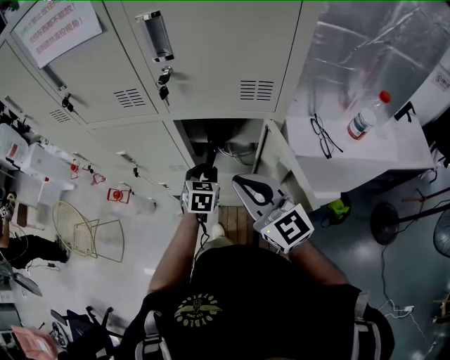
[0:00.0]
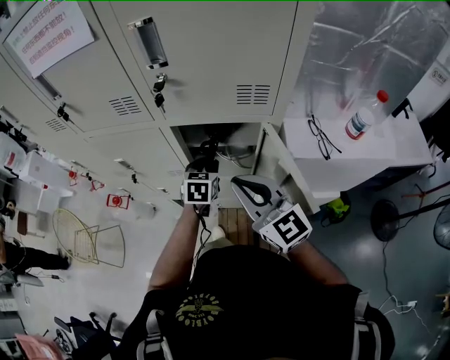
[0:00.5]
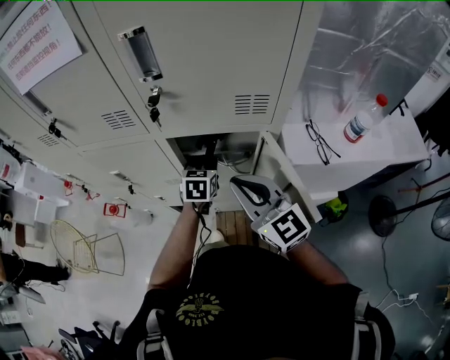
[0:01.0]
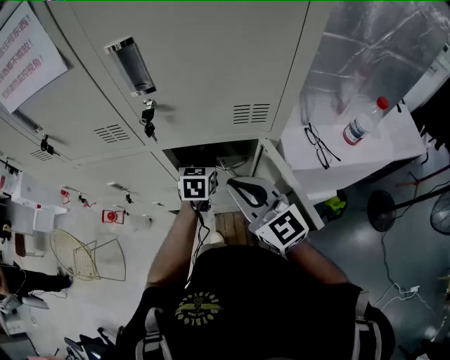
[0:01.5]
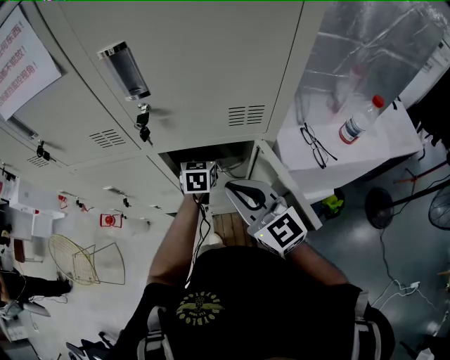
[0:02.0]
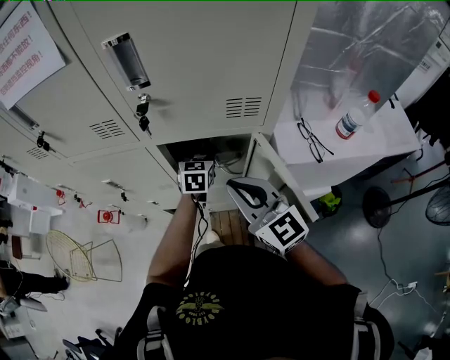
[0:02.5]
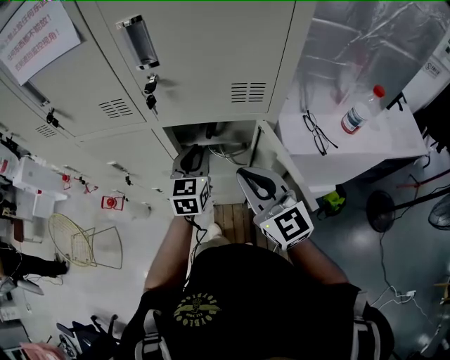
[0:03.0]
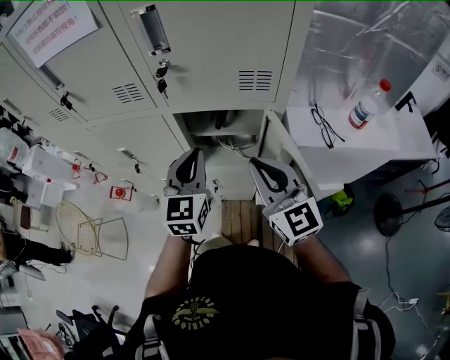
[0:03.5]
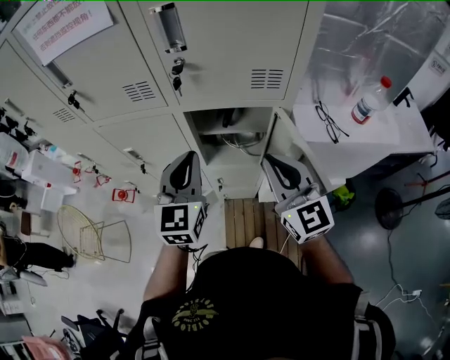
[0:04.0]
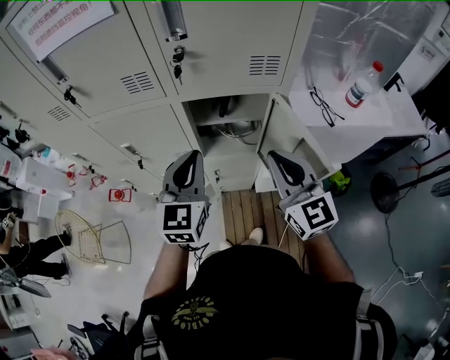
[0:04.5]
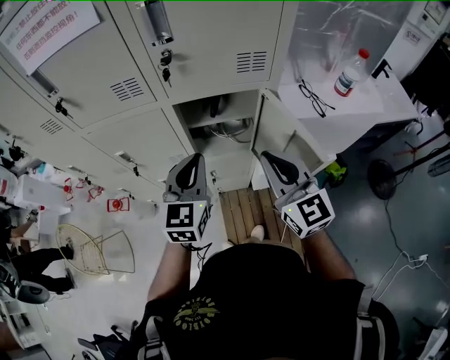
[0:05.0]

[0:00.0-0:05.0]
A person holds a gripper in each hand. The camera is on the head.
0:00.0 to 0:02.5: The left gripper heads forward and to the right, covering about 15 cm.
0:02.5 to 0:05.0: The right gripper shifts roughly 10 cm backward; the left gripper goes roughly 25 cm backward, upward and to the left, and closes up.

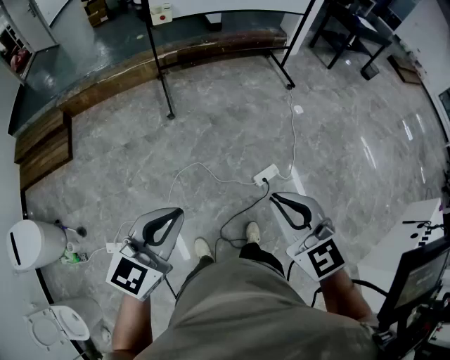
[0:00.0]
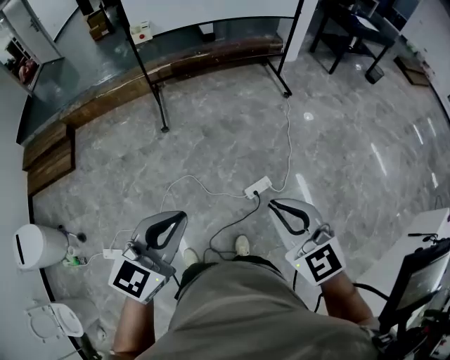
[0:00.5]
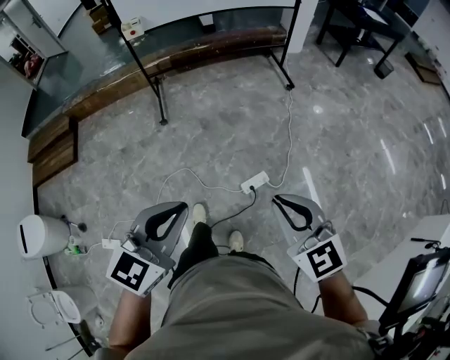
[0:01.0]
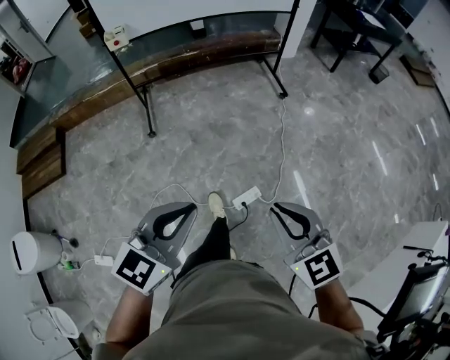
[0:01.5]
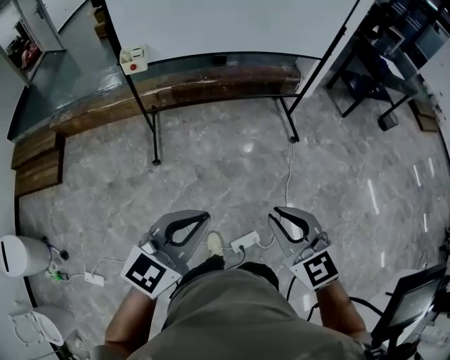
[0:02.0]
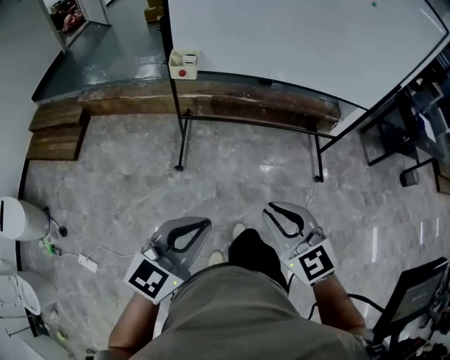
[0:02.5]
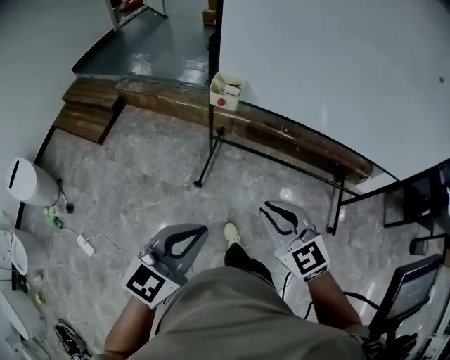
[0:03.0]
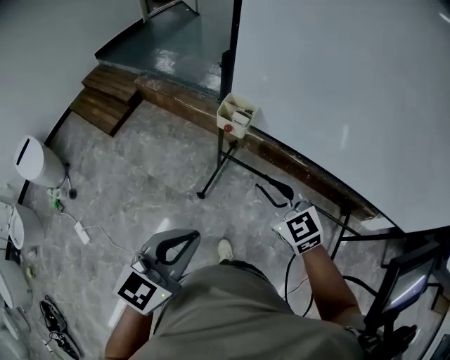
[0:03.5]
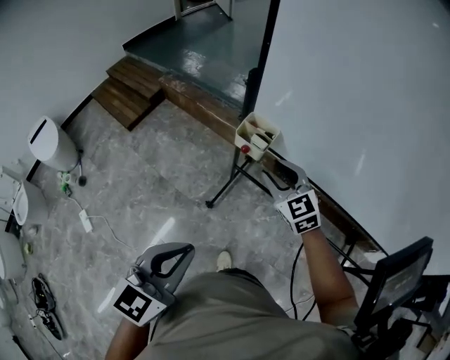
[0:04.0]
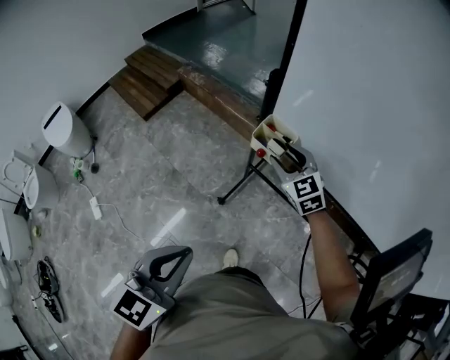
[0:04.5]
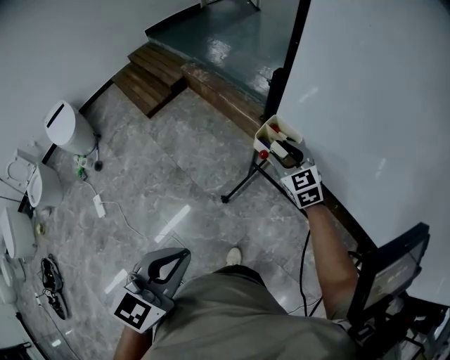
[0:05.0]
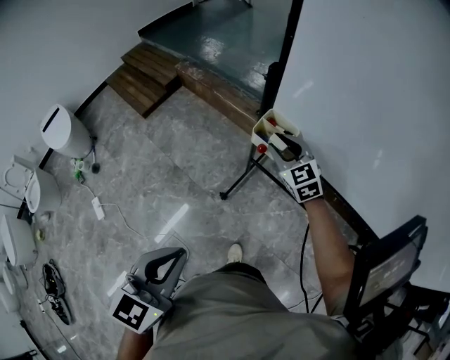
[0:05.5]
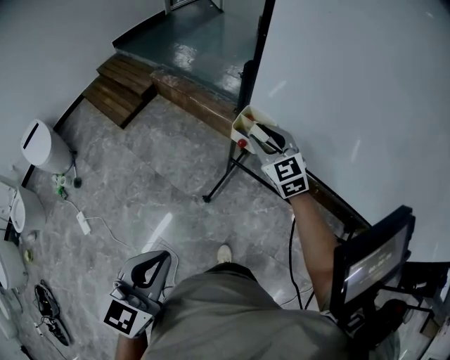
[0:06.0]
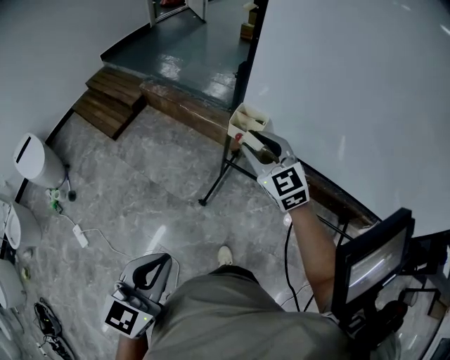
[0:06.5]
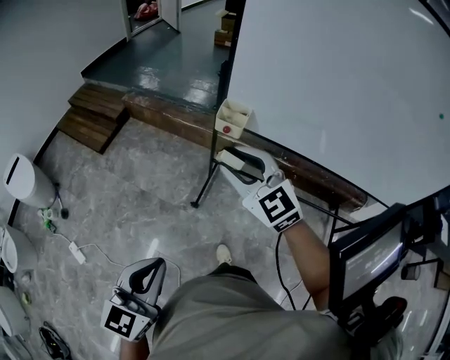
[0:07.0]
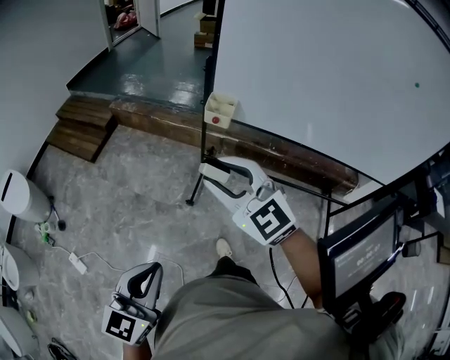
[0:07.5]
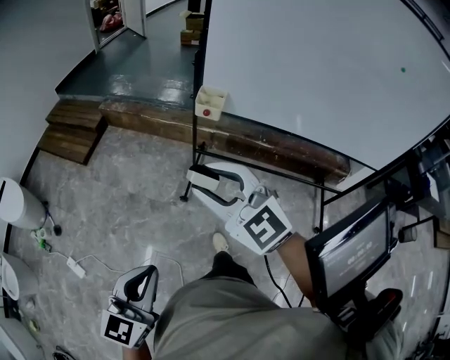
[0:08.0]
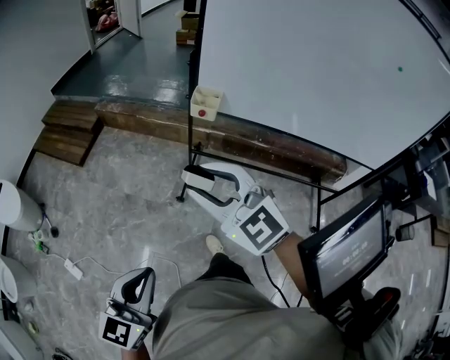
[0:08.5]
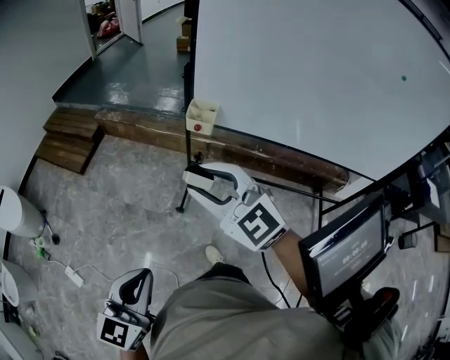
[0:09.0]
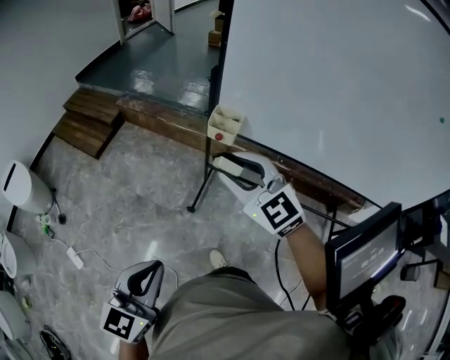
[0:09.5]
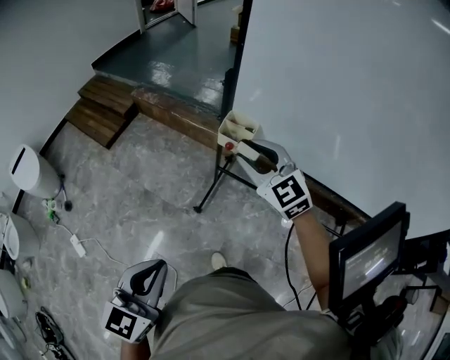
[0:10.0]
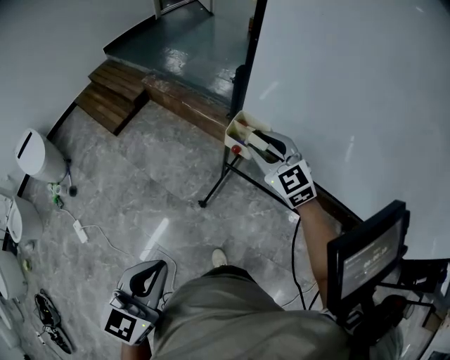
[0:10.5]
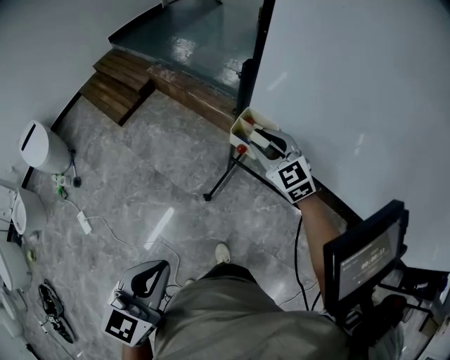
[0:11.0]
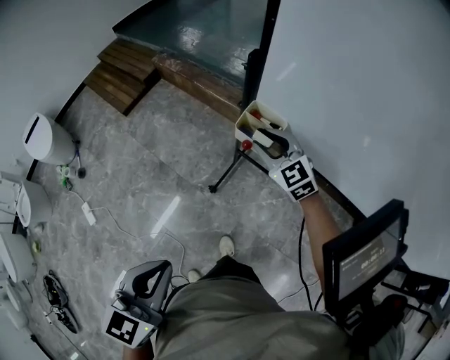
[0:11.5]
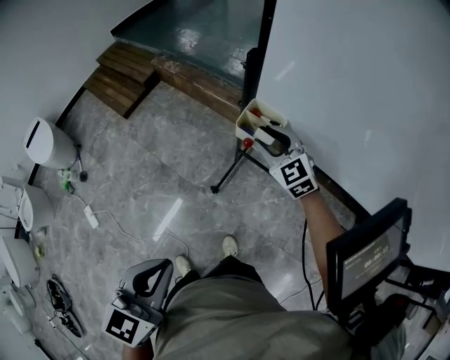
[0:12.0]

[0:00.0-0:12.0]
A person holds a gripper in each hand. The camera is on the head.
0:00.0 to 0:02.0: The two grippers travel together, forward and to the right, approximately 50 cm.
0:02.0 to 0:04.0: The right gripper shifts by approximately 70 cm, rotates about 40 degrees, and opens its fingers, while the left gripper shifts by some 40 cm, and changes its angle by about 50 degrees.
0:04.0 to 0:06.0: The right gripper moves forward, about 5 cm. Meanwhile the left gripper goes approximately 5 cm to the left.
0:06.0 to 0:08.0: The right gripper travels backward and to the left by about 40 cm. The left gripper moves backward and to the left, approximately 25 cm.
0:08.0 to 0:10.0: The left gripper travels forward and to the right by approximately 20 cm, while the right gripper is displaced forward and to the right by some 30 cm.
0:10.0 to 0:12.0: The left gripper moves forward, roughly 5 cm. The right gripper goes approximately 20 cm downward and forward.

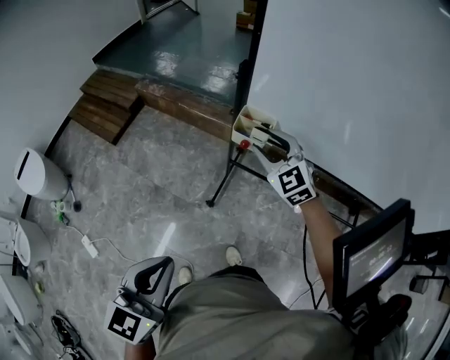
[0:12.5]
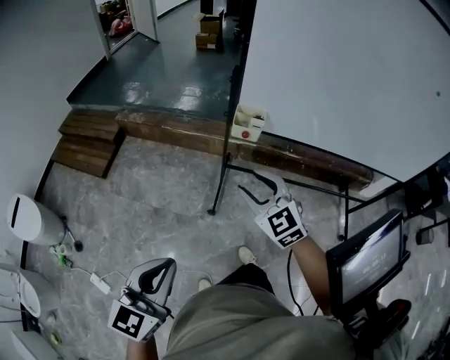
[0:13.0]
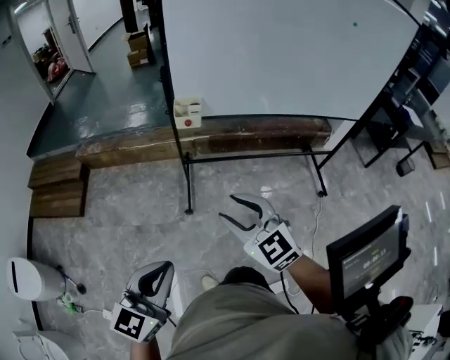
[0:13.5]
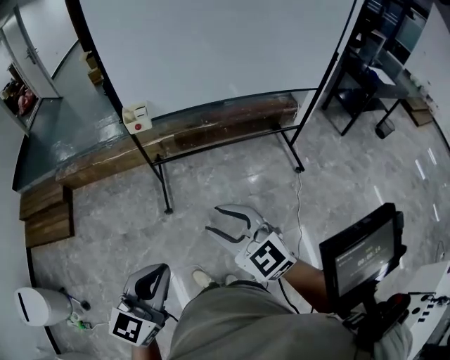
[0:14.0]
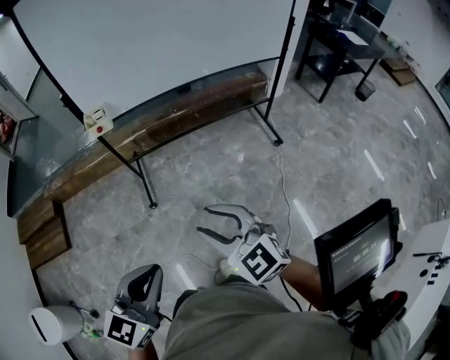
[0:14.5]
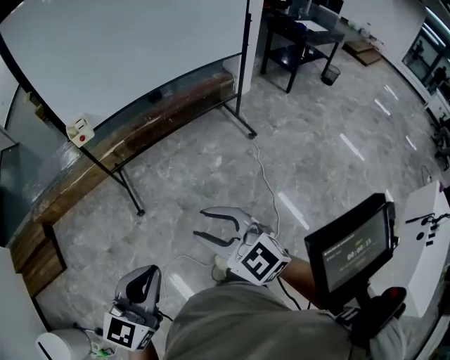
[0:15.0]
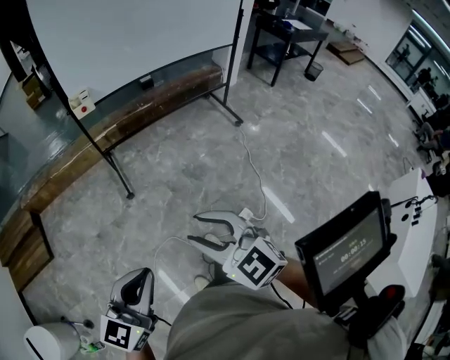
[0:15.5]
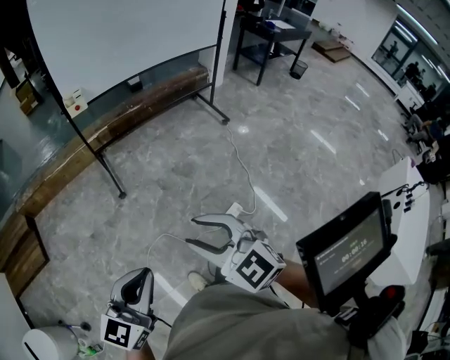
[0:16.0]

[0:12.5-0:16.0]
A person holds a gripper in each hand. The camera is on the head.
0:12.5 to 0:14.5: The right gripper ends up about 60 cm from where it was, and rotates about 40 degrees; the left gripper moves about 30 cm, and turns by approximately 50 degrees.
0:14.5 to 0:16.0: The grippers both shift backward by some 35 cm.

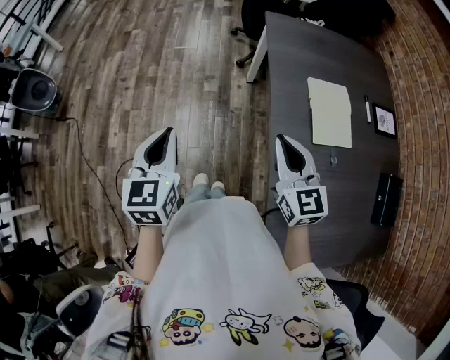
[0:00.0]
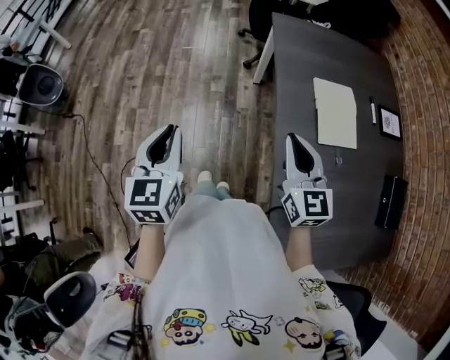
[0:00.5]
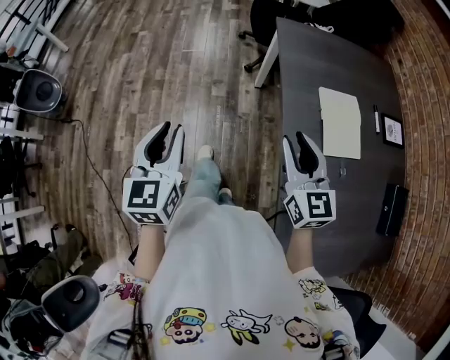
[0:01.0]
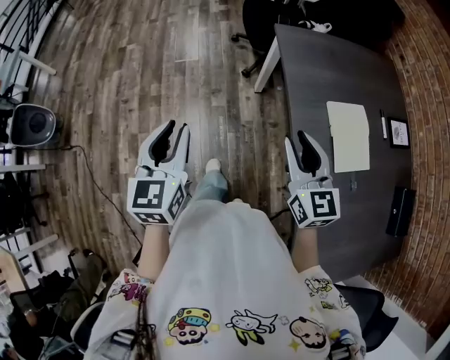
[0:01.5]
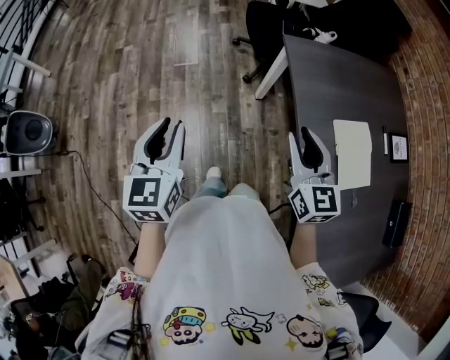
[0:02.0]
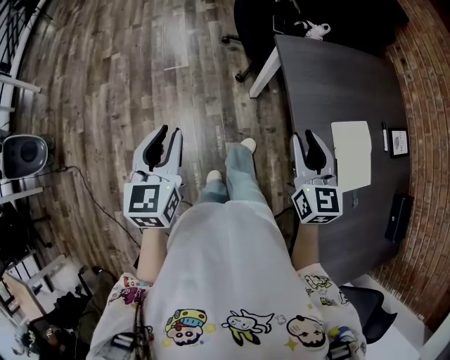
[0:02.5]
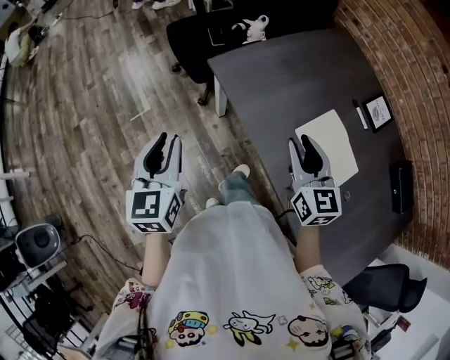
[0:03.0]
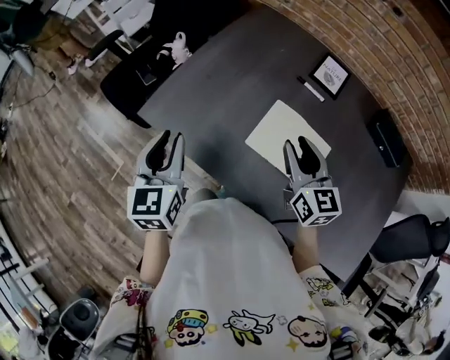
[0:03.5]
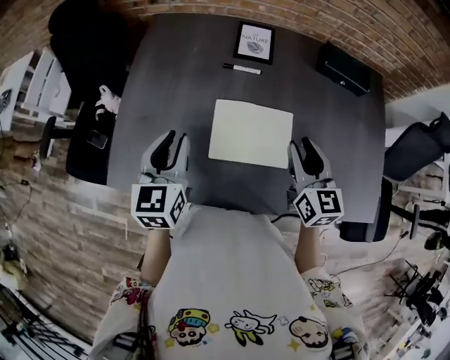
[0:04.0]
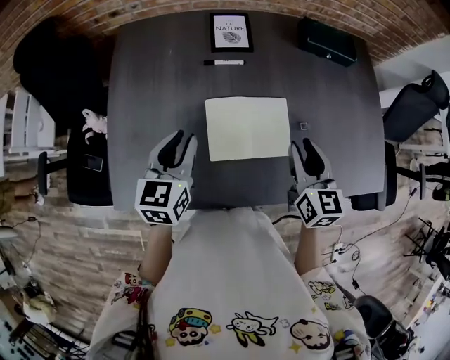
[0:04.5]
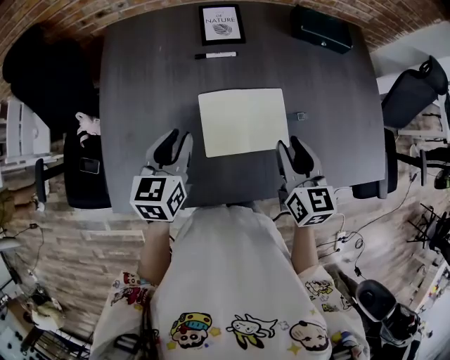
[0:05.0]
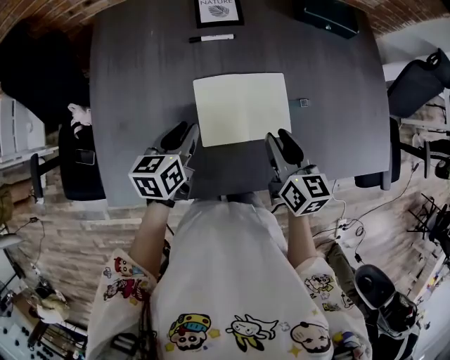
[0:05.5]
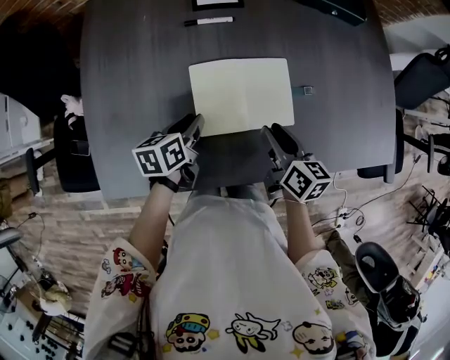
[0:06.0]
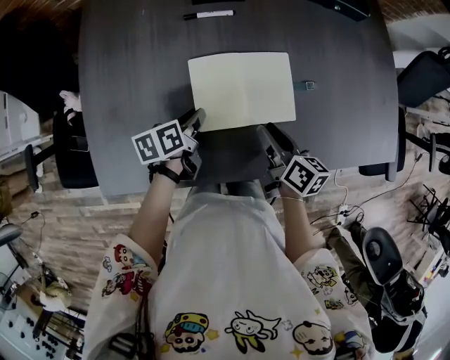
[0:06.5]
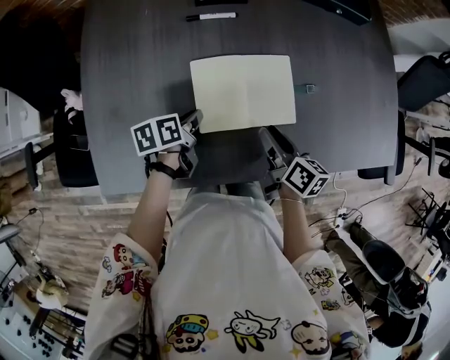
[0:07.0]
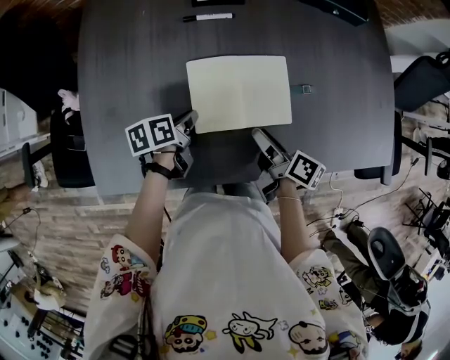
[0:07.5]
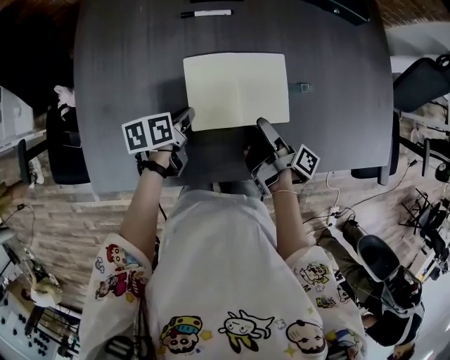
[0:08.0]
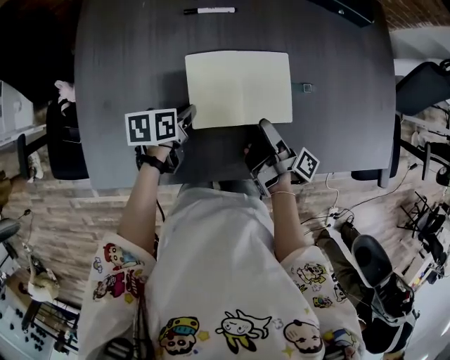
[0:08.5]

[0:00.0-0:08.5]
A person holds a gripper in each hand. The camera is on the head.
0:00.0 to 0:02.0: Both grippers travel together forward, approximately 25 cm. The left gripper opens.
0:02.0 to 0:04.0: The left gripper changes place by approximately 60 cm, and swivels approximately 80 degrees. The right gripper shifts by some 40 cm, and swivels some 80 degrees.
0:04.0 to 0:06.5: Both grippers travel together downward, roughly 20 cm. The right gripper rolls clockwise, seen from behind, by roughly 40 degrees. Meanwhile the left gripper swivels some 50 degrees.
0:06.5 to 0:08.5: The right gripper rolls clockwise, seen from behind, by approximately 50 degrees, and opens.
